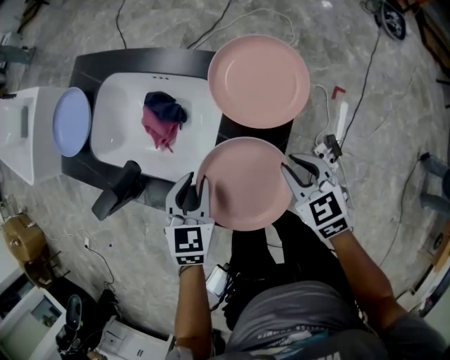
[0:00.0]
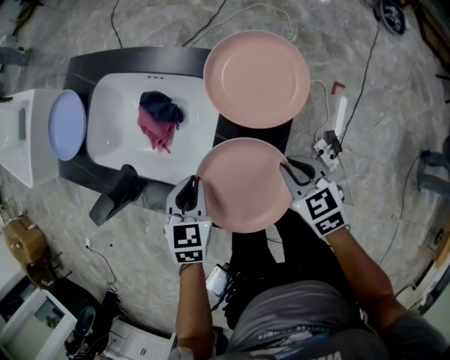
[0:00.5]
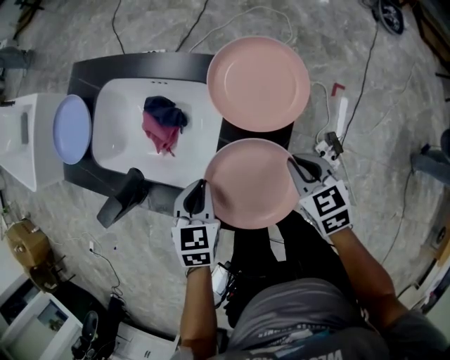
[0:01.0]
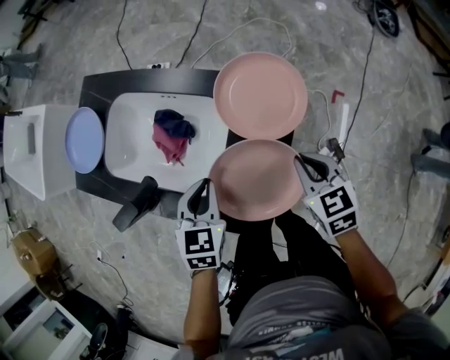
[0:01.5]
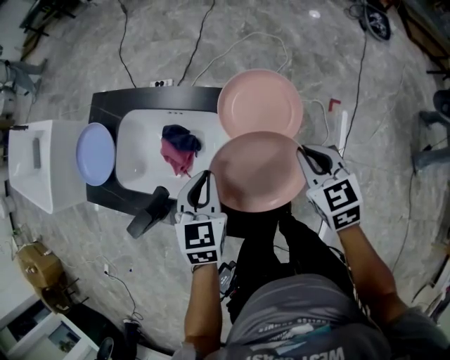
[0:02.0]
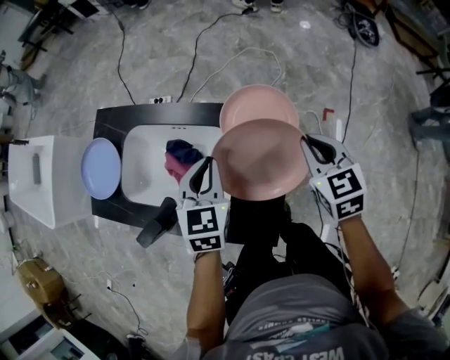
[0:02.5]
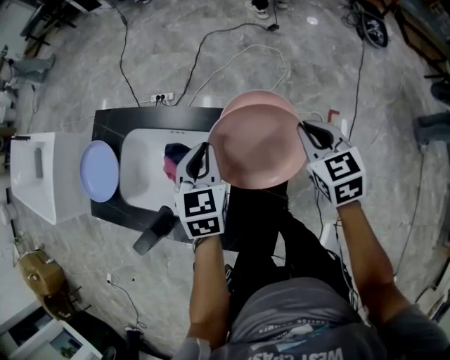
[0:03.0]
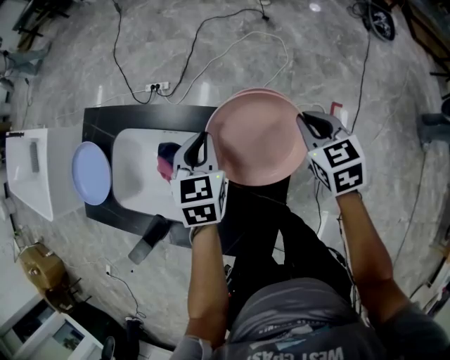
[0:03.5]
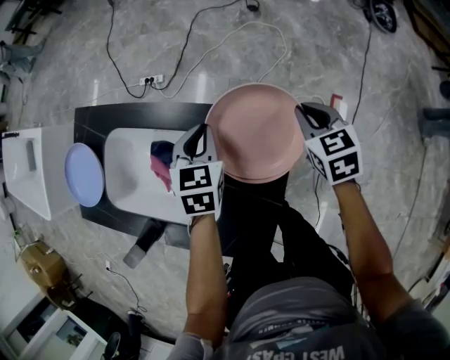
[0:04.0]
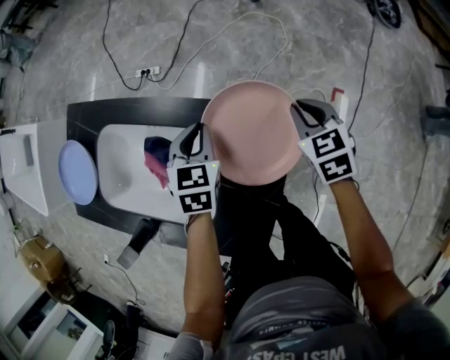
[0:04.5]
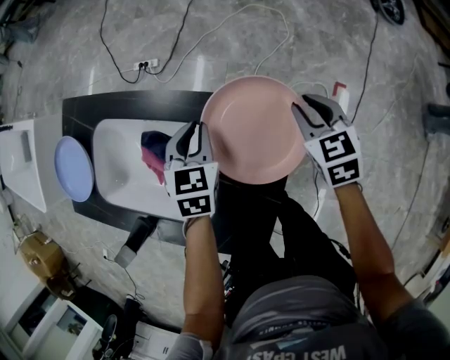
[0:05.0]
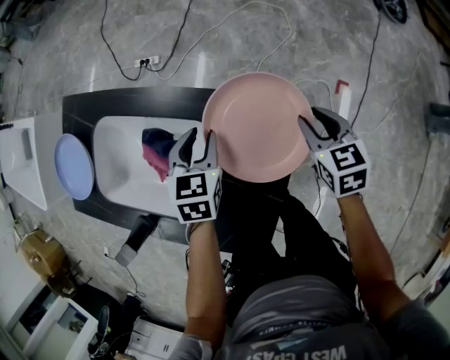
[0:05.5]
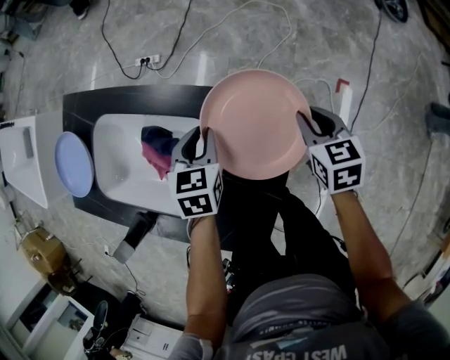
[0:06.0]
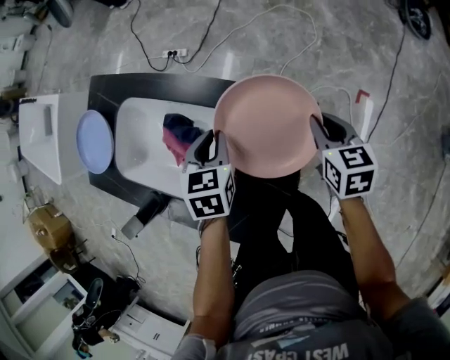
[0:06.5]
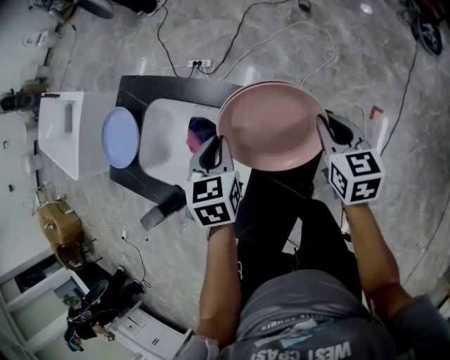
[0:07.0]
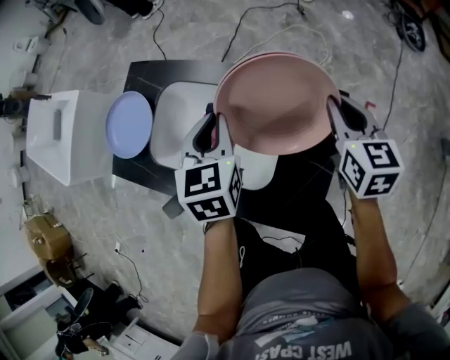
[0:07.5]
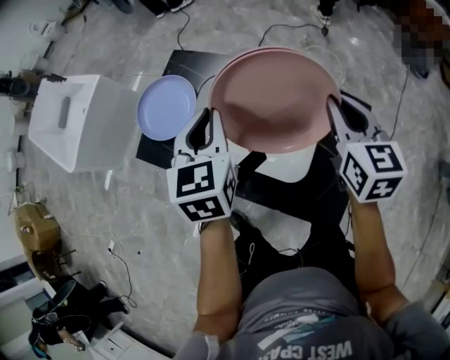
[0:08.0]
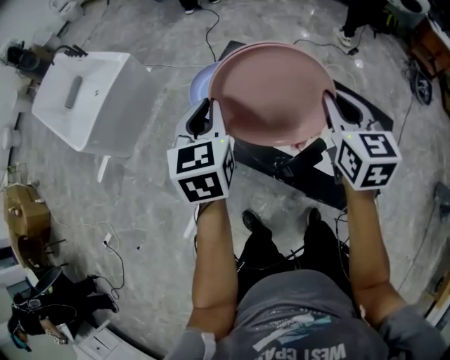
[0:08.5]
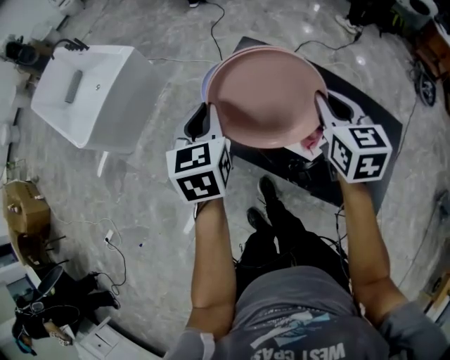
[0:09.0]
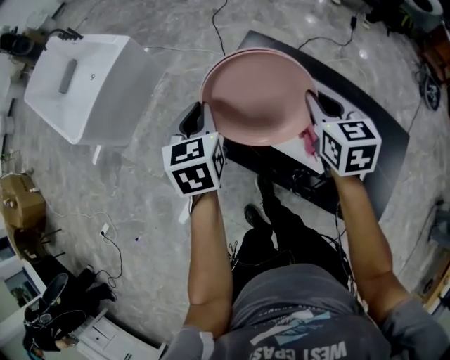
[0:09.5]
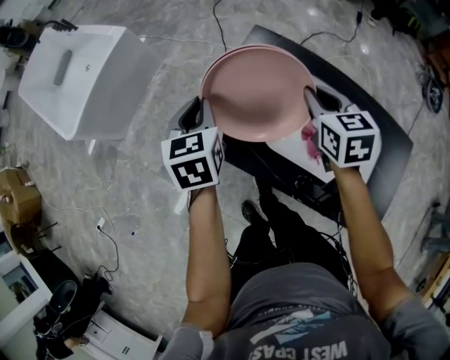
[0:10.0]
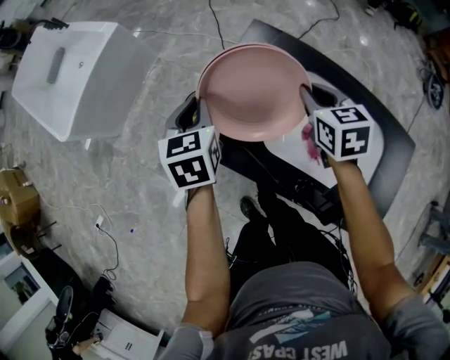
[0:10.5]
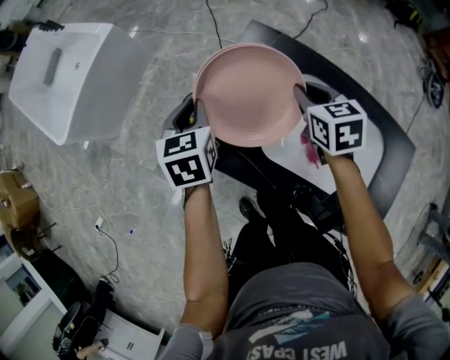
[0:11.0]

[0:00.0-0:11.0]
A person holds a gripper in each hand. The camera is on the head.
0:00.0 to 0:02.0: The grippers both shift upward and forward by approximately 10 cm.
0:02.0 to 0:03.5: The two grippers go approximately 15 cm forward.
0:03.5 to 0:05.5: Both grippers travel together downward, roughly 10 cm. The left gripper opens. Meanwhile the right gripper opens its fingers.
0:05.5 to 0:07.5: Both grippers travel together upward and to the left, about 20 cm. The right gripper closes up. The left gripper closes up.
0:07.5 to 0:09.0: The two grippers travel together, to the left, about 40 cm.
0:09.0 to 0:11.0: Both grippers travel together downward and forward, roughly 20 cm. The right gripper rotates approximately 20 degrees.

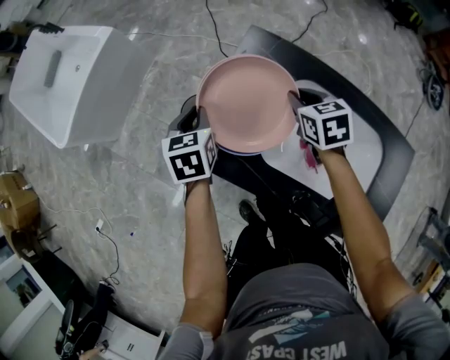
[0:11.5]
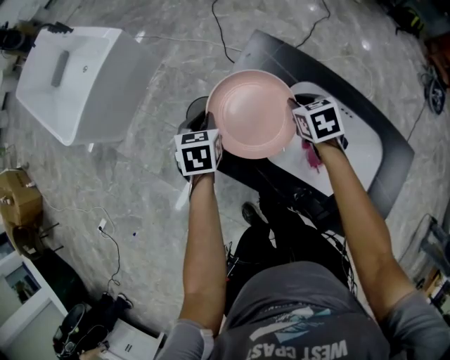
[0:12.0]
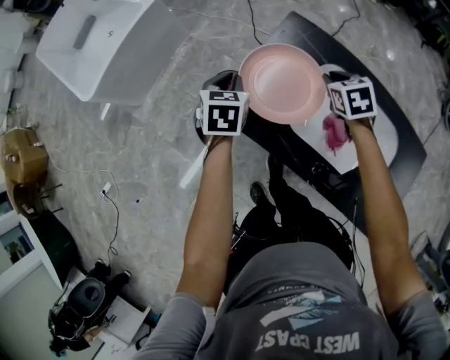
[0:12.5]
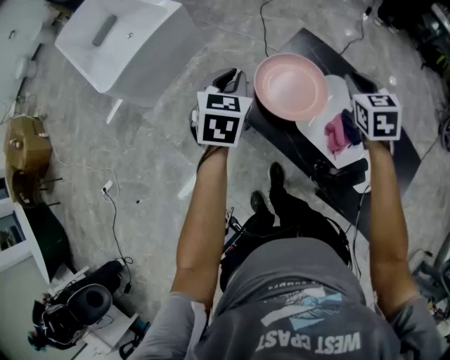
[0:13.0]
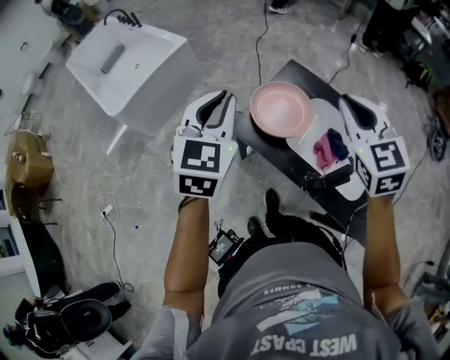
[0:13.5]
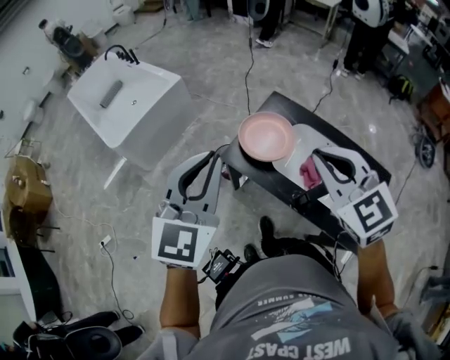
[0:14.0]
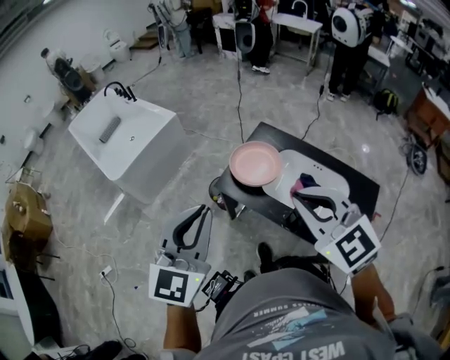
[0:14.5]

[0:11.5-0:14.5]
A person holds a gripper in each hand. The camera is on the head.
0:11.5 to 0:13.0: The left gripper heads upward and backward, covering some 15 cm. The right gripper shifts about 15 cm upward, and rotates roughly 20 degrees.
0:13.0 to 0:14.5: The two grippers go approximately 40 cm backward and upward. The right gripper swivels roughly 40 degrees, while the left gripper tips its fingers upward by about 30 degrees.

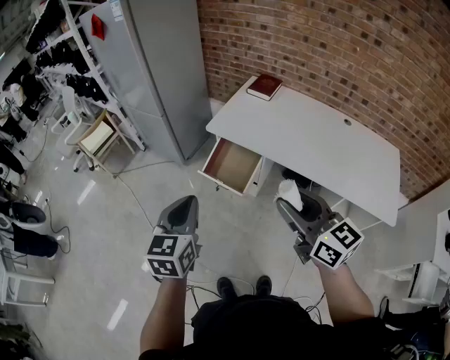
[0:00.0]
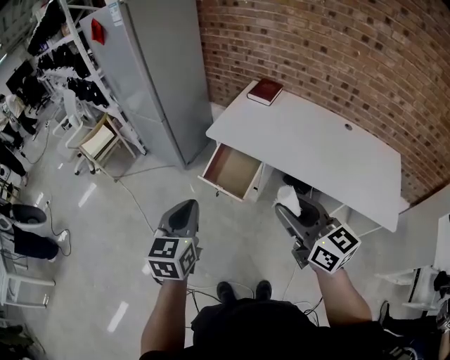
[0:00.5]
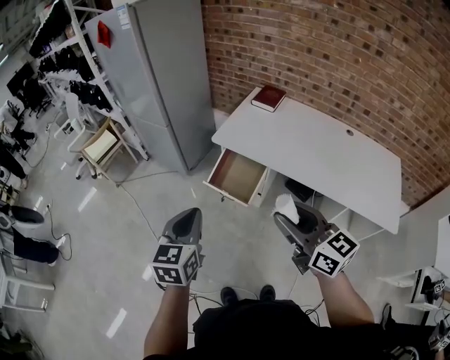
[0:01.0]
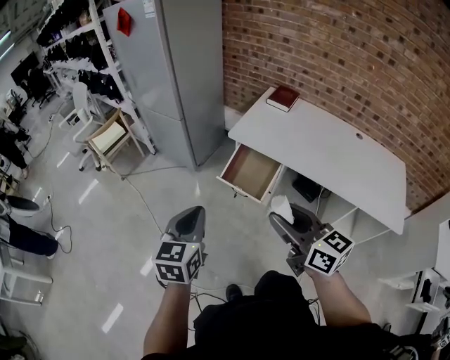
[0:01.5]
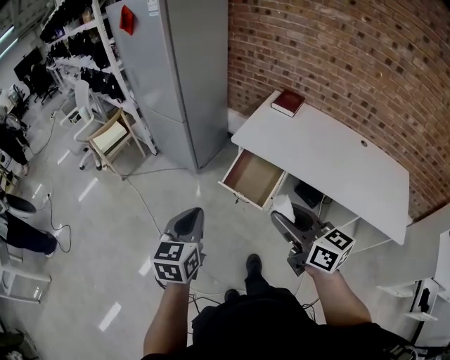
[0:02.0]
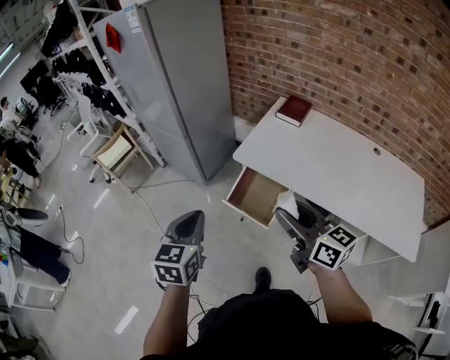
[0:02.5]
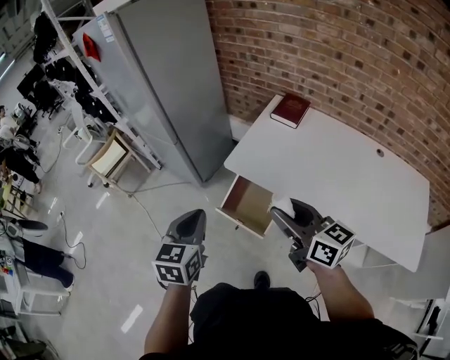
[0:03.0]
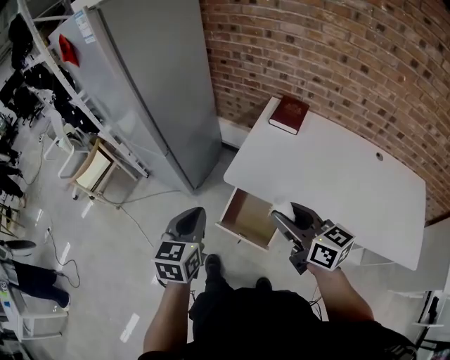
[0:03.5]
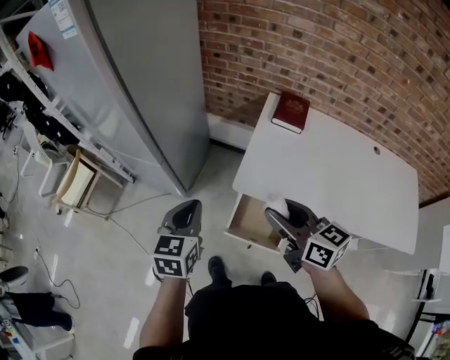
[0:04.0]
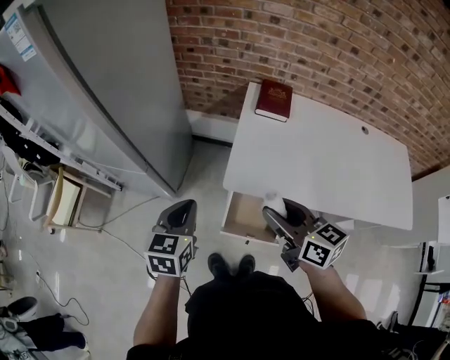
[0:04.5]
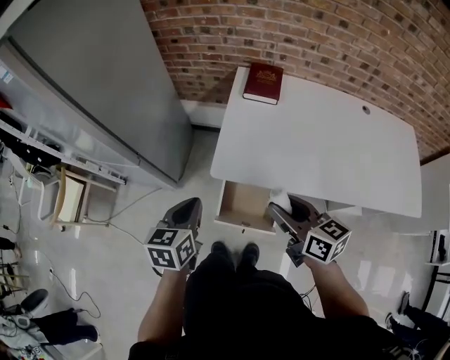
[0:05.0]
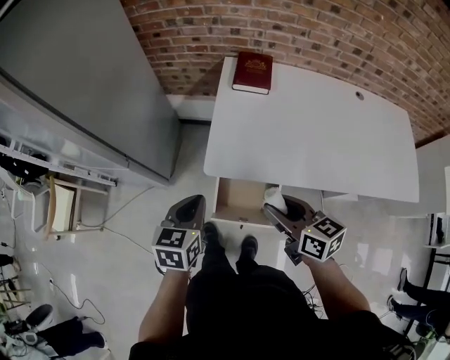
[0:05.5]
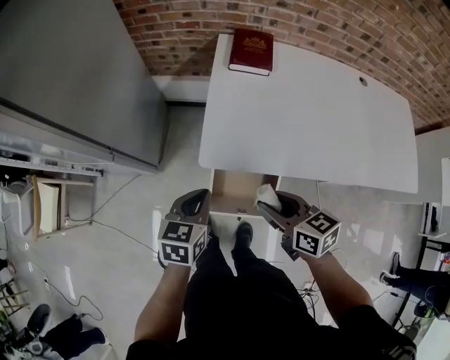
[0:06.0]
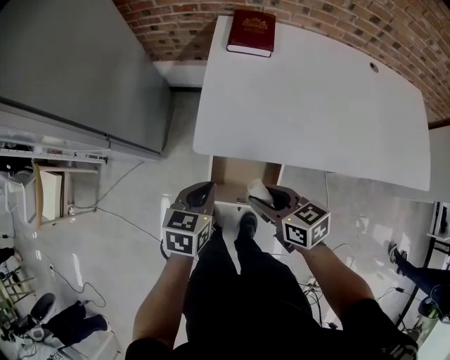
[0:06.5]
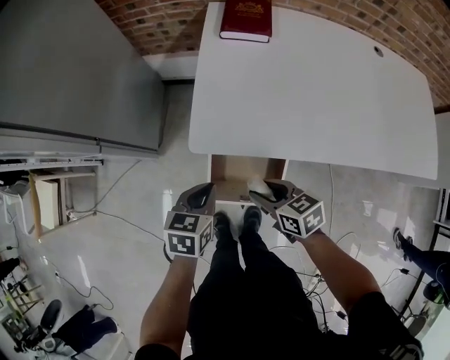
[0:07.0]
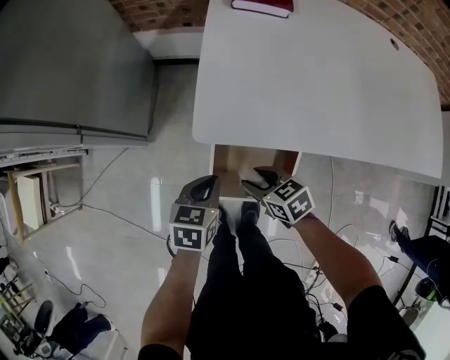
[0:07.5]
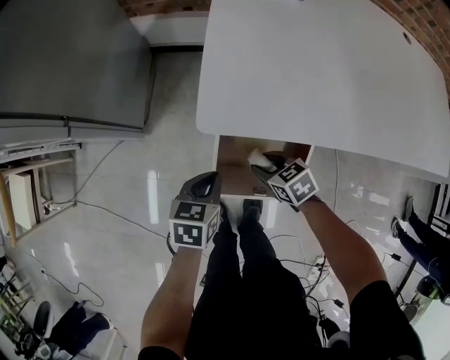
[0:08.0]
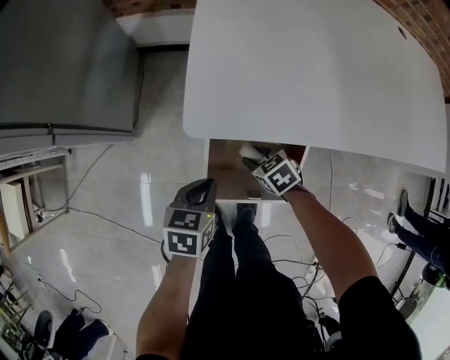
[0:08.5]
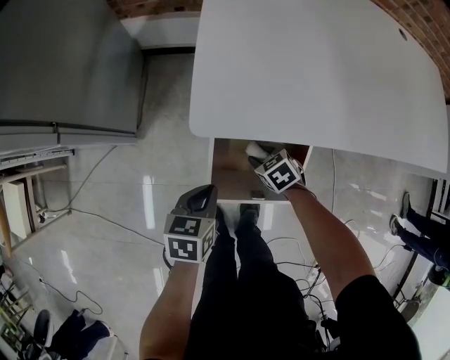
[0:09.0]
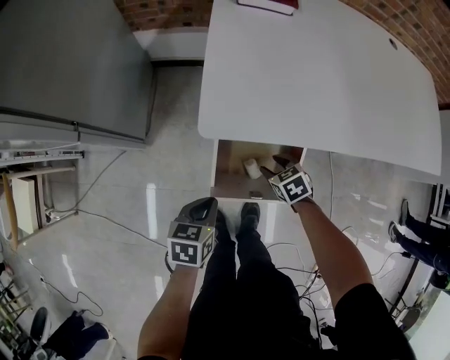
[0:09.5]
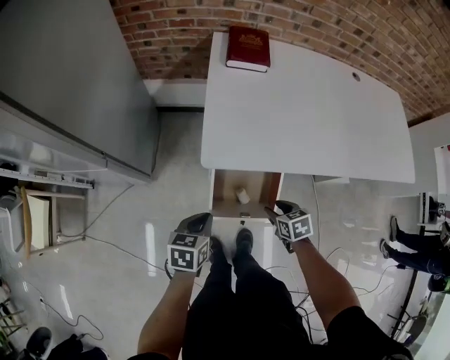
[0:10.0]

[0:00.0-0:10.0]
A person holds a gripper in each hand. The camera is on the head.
0:00.0 to 0:02.0: Both grippers move to the left, approximately 10 cm.
0:02.0 to 0:04.0: The two grippers go some 40 cm forward.
0:04.0 to 0:06.0: The left gripper travels downward and to the right by some 20 cm, and changes its angle by about 30 degrees. The right gripper is displaced downward by about 15 cm, and turns by approximately 20 degrees.
0:06.0 to 0:08.0: The two grippers go roughly 30 cm downward. The right gripper rotates some 30 degrees.
0:08.0 to 0:10.0: The right gripper goes about 15 cm upward, to the right and backward, and changes its angle by approximately 20 degrees; the left gripper is displaced upward by approximately 10 cm.

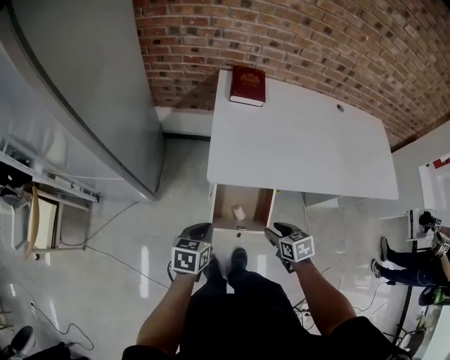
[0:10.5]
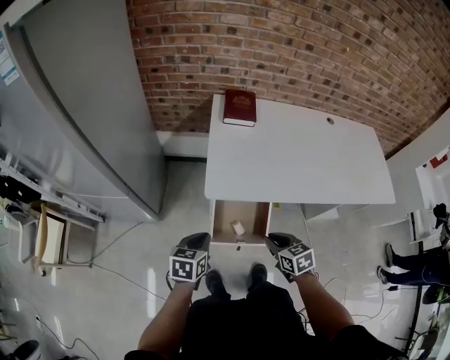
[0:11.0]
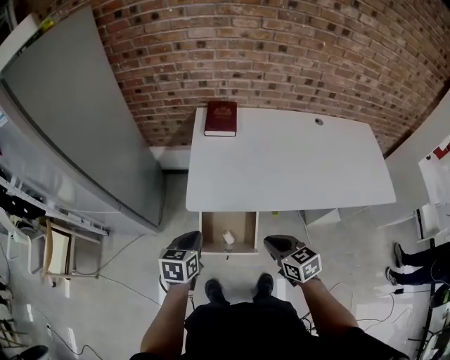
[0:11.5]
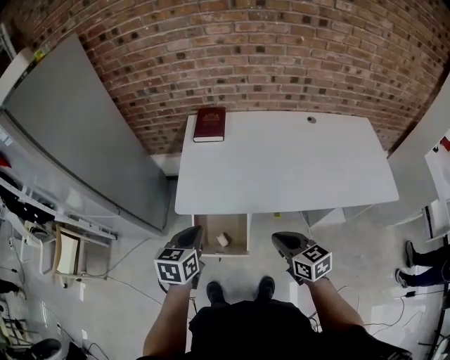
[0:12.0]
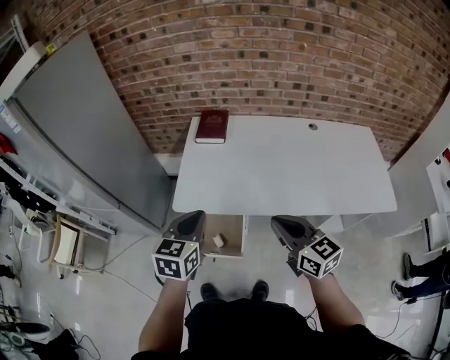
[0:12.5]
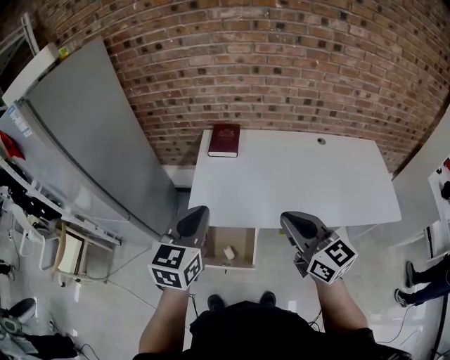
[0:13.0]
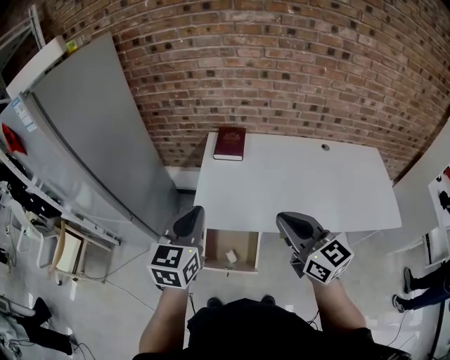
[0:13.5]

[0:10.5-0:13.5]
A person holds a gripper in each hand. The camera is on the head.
0:10.5 to 0:12.0: The grippers both shift upward and to the right by about 25 cm. The right gripper turns by about 30 degrees, and closes up.
0:12.0 to 0:13.5: Both grippers travel together upward, some 20 cm. The left gripper changes its angle by approximately 20 degrees. The right gripper changes its angle by approximately 30 degrees.
